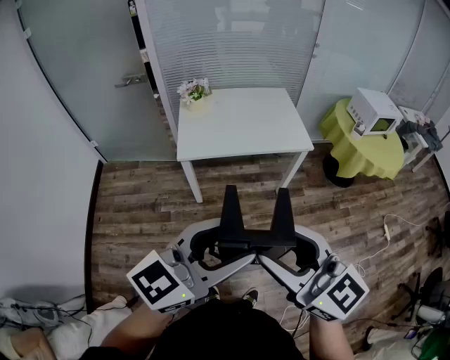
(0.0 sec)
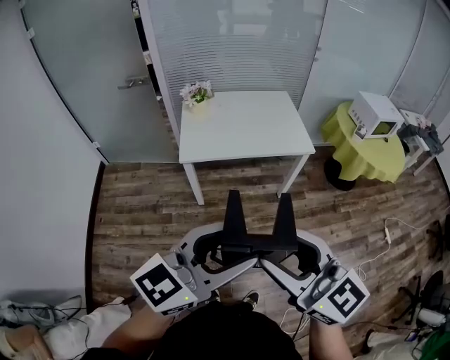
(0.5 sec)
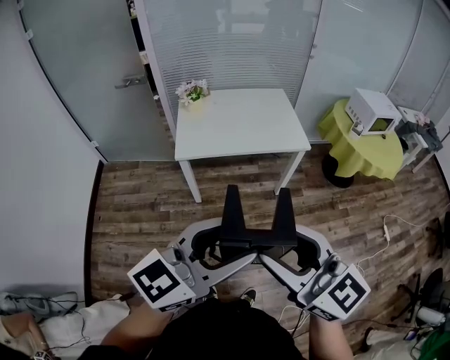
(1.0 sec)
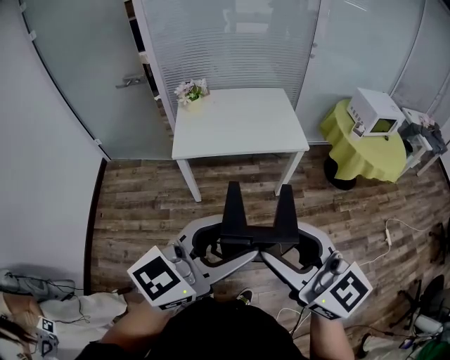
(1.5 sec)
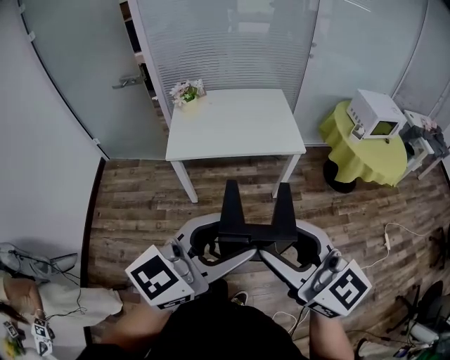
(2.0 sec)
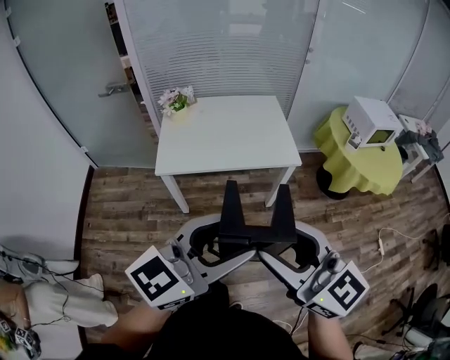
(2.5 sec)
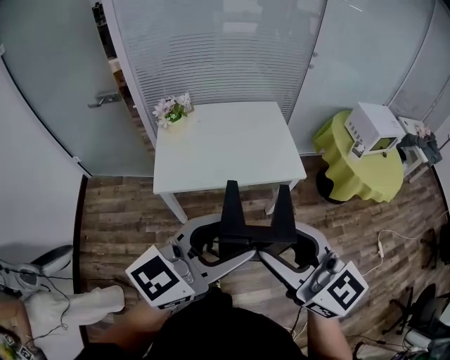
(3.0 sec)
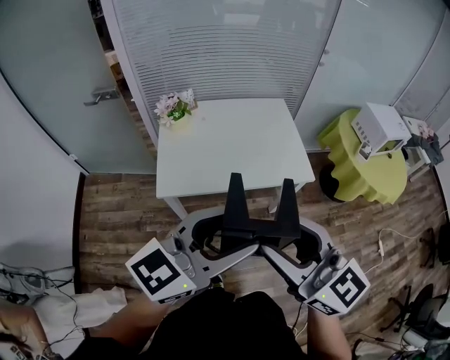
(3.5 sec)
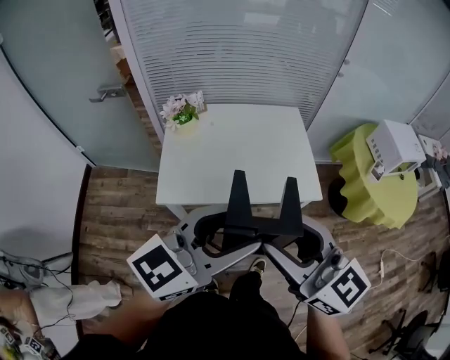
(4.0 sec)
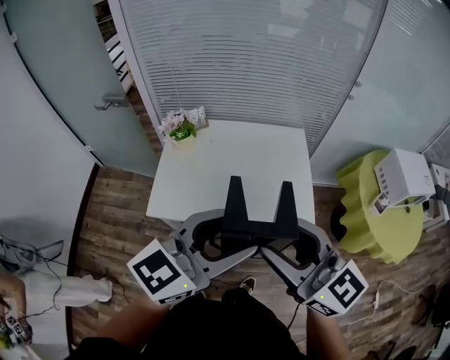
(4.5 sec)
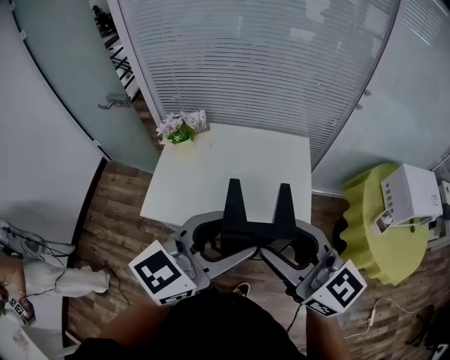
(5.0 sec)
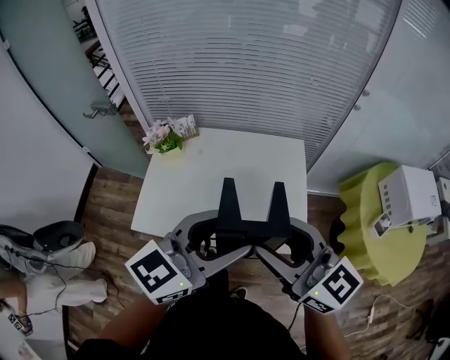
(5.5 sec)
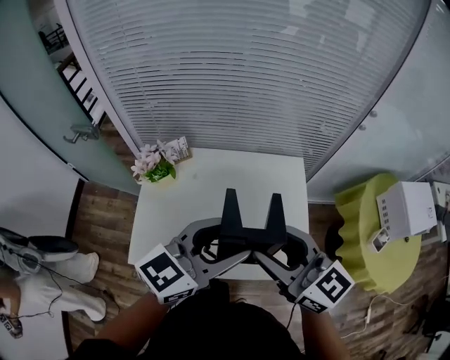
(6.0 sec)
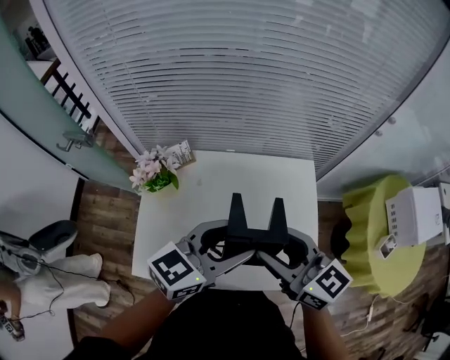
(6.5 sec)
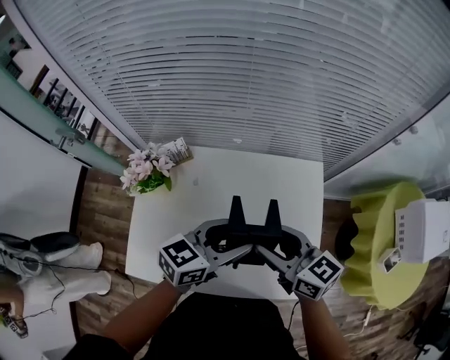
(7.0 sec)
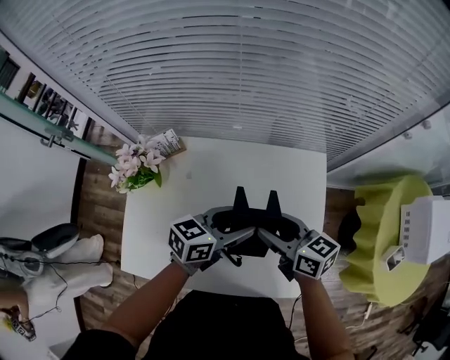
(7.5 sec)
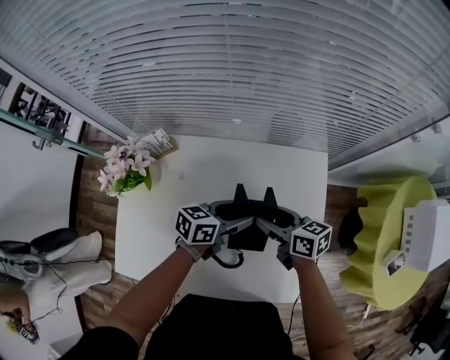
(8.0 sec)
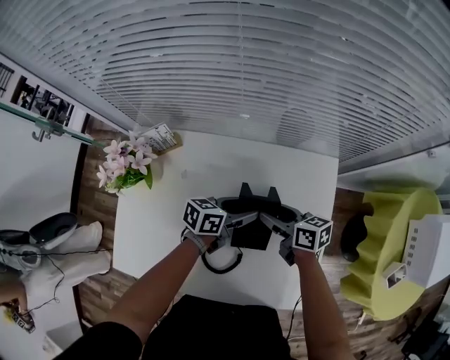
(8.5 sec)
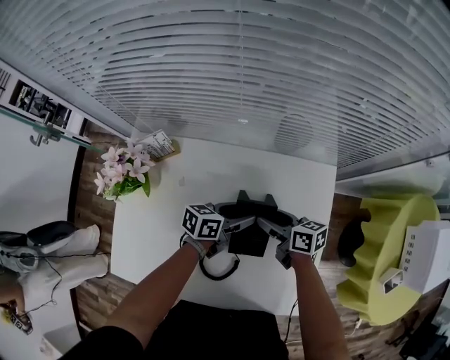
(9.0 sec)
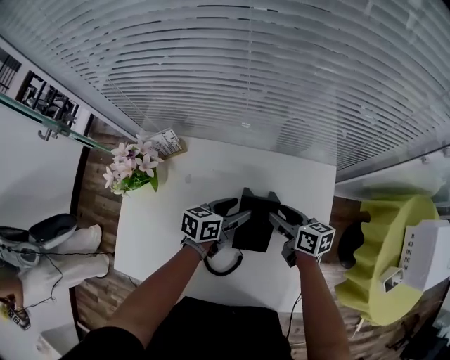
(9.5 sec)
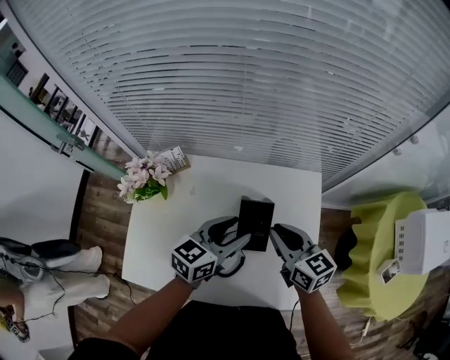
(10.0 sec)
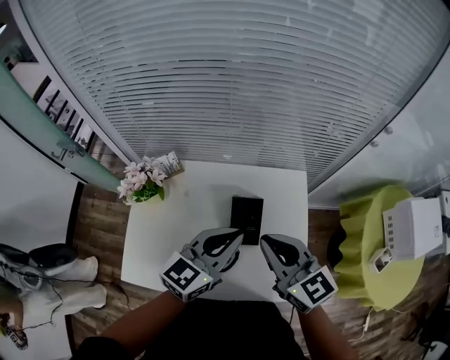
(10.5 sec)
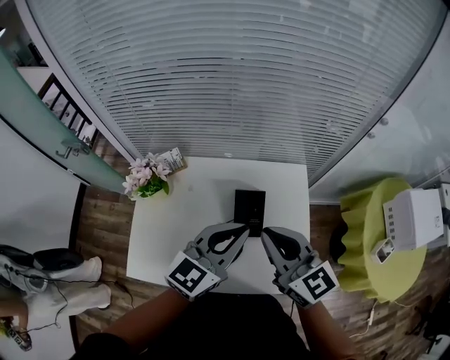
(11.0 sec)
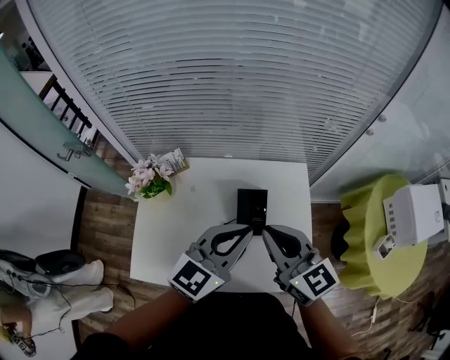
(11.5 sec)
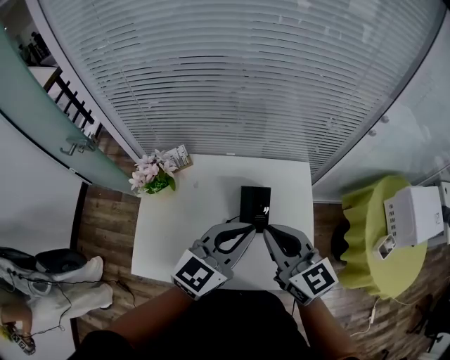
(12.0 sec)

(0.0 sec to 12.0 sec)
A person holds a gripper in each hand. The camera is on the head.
0.0 sec - 2.0 sec: Both grippers travel together to the right, about 10 cm.
2.0 sec - 4.0 sec: Both grippers move forward, about 35 cm.
4.0 sec - 6.0 sec: Both grippers move forward, approximately 35 cm.
6.0 sec - 8.0 sec: The two grippers go some 40 cm downward and forward. The right gripper changes its angle by some 40 degrees, while the left gripper rotates some 40 degrees.
8.0 sec - 10.0 sec: The two grippers go about 10 cm upward. The right gripper changes its angle by roughly 30 degrees, and closes up, while the left gripper swivels approximately 20 degrees.
10.0 sec - 12.0 sec: Both grippers move upward and backward, some 20 cm. The left gripper swivels about 20 degrees, and closes its fingers.

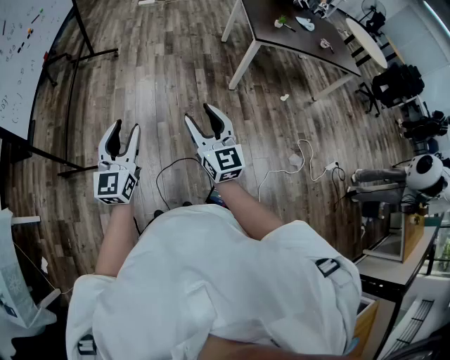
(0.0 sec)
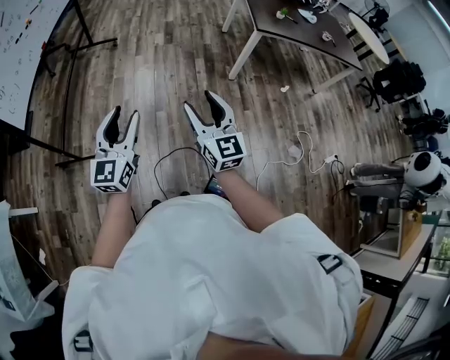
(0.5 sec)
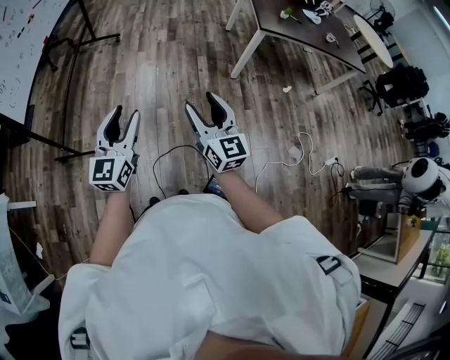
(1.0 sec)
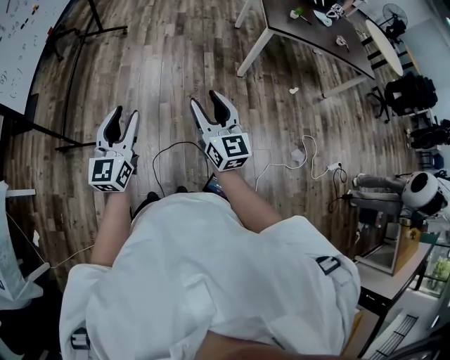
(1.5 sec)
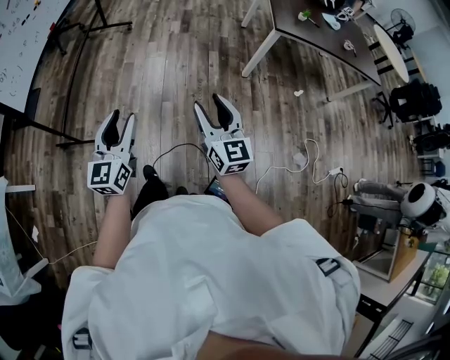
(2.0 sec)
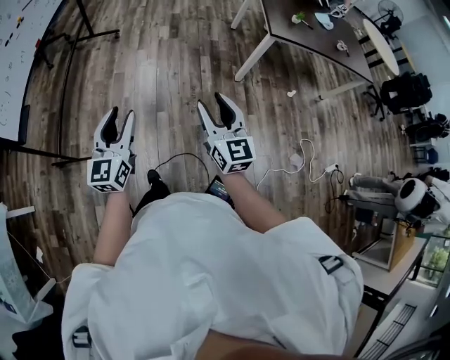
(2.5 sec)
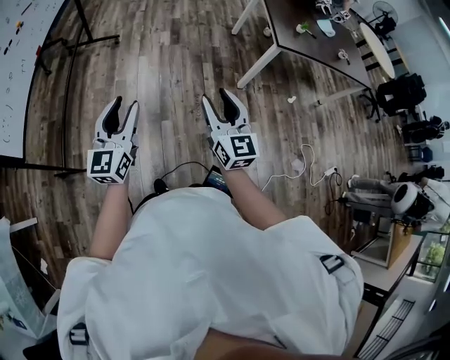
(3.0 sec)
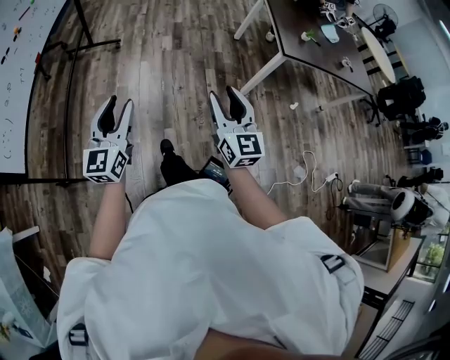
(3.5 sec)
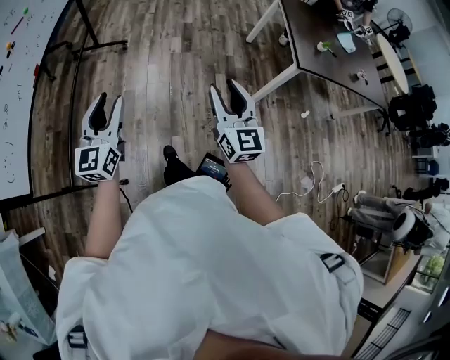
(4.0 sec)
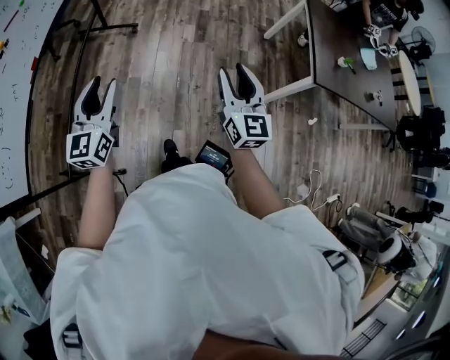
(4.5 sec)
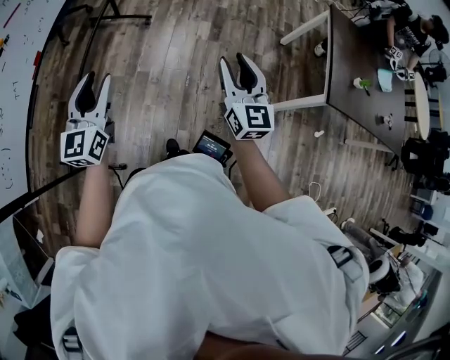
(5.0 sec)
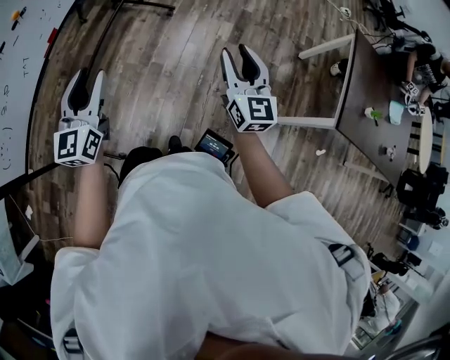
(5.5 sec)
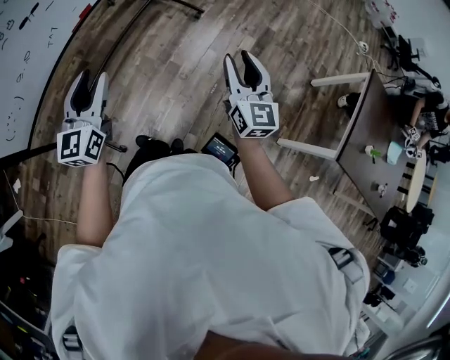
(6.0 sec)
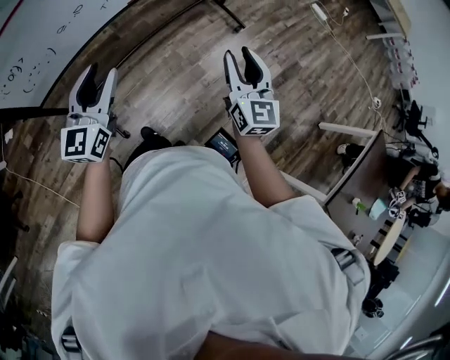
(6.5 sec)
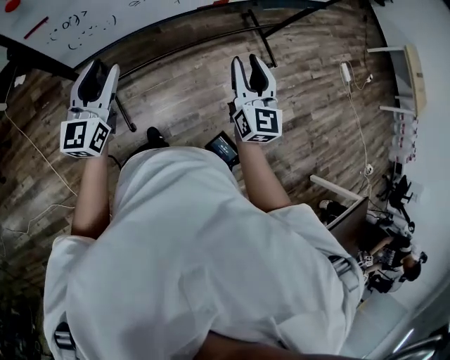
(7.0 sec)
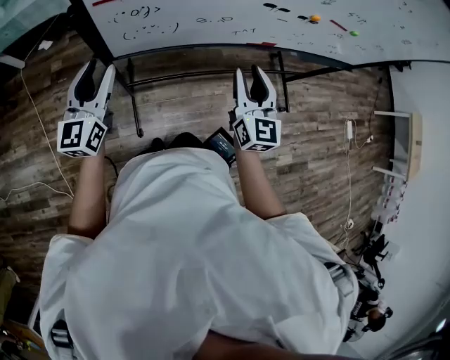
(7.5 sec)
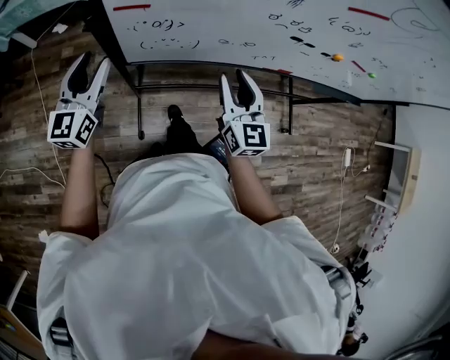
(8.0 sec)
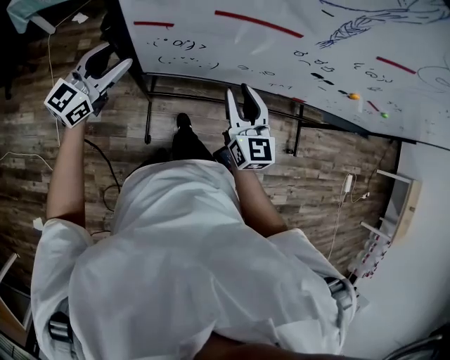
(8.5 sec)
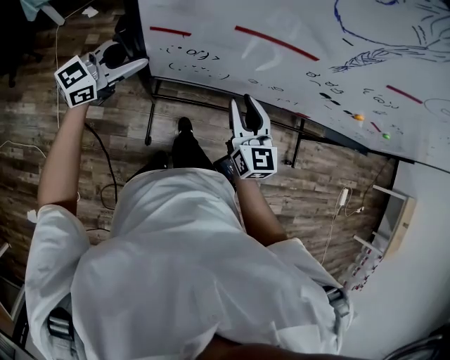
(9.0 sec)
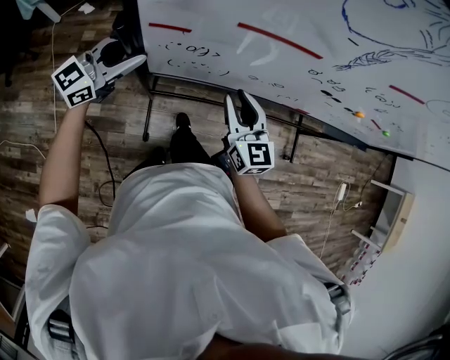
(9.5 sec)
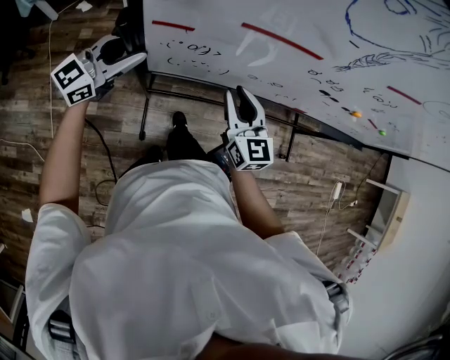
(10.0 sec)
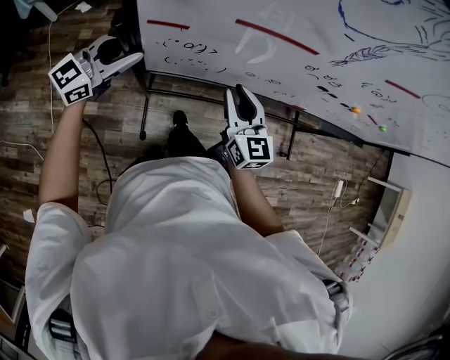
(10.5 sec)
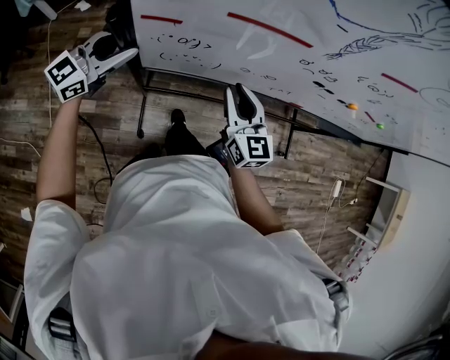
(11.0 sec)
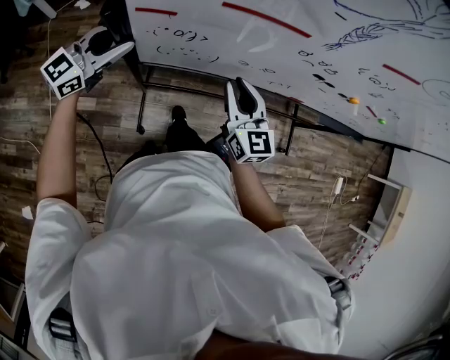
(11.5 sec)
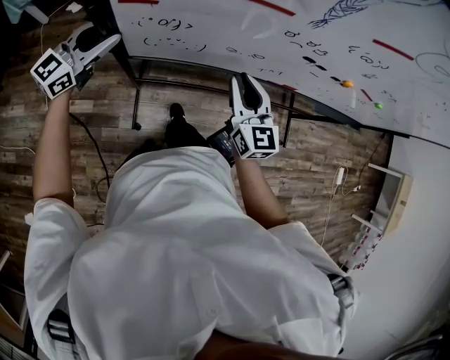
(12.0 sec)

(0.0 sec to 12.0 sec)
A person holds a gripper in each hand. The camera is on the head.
0.0 sec - 2.0 sec: The right gripper changes place by roughly 5 cm.
2.0 sec - 4.0 sec: Both grippers are carried forward, about 40 cm.
4.0 sec - 6.0 sec: The left gripper shifts by roughly 25 cm, and rotates about 30 degrees, while the right gripper changes place by some 35 cm, and changes its angle by about 30 degrees.
6.0 sec - 8.0 sec: Both grippers are carried approximately 50 cm. The right gripper swivels roughly 60 degrees; the left gripper rotates some 50 degrees.
8.0 sec - 10.0 sec: The right gripper shifts about 5 cm to the left. The left gripper travels forward by approximately 5 cm, and rotates approximately 30 degrees.
10.0 sec - 12.0 sec: The right gripper shifts roughly 5 cm to the right.

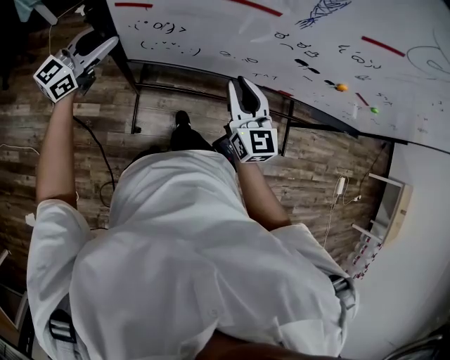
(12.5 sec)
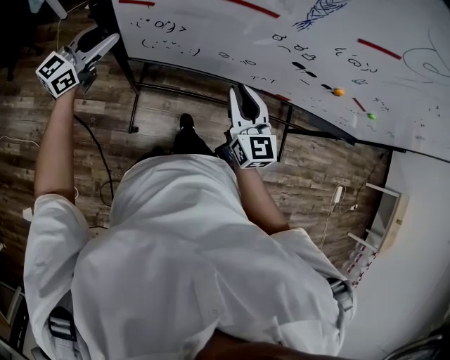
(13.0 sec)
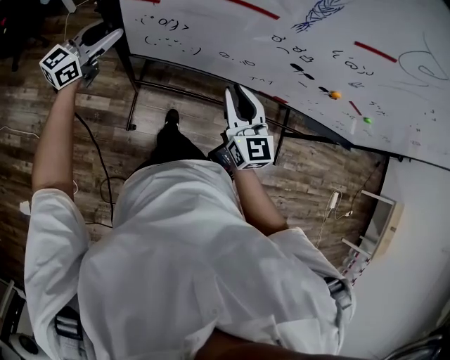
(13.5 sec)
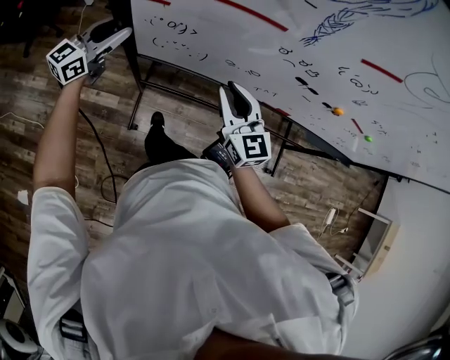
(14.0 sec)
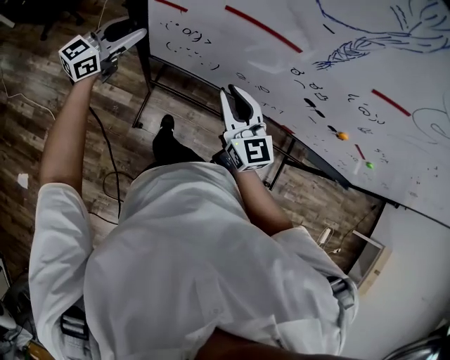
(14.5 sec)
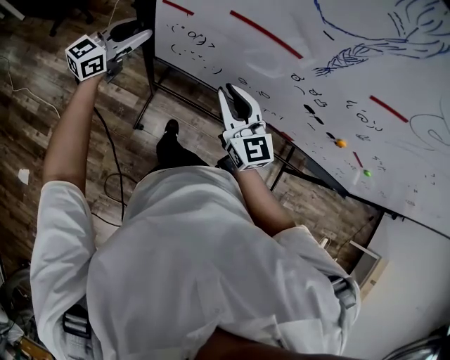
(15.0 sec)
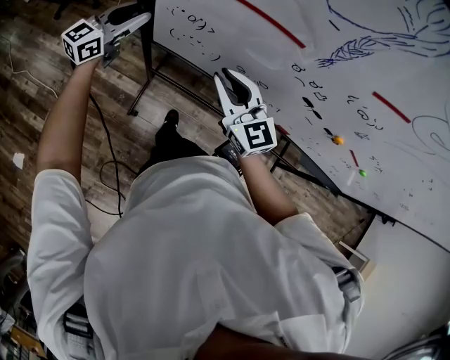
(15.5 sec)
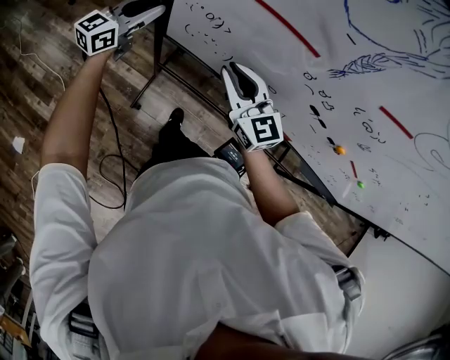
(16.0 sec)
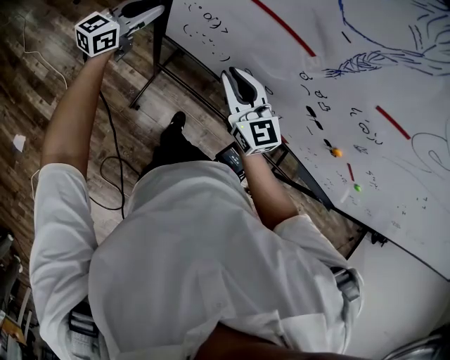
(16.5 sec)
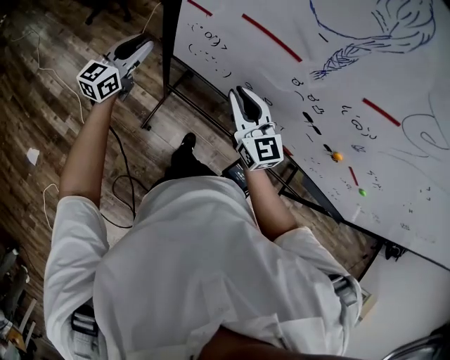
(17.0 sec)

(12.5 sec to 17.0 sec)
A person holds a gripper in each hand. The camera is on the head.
12.5 sec - 14.5 sec: The right gripper travels to the left by some 5 cm, and rotates approximately 20 degrees.
14.5 sec - 17.0 sec: The left gripper heads backward, covering approximately 10 cm, and turns by roughly 30 degrees.
